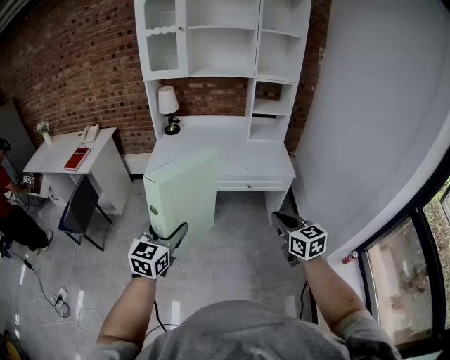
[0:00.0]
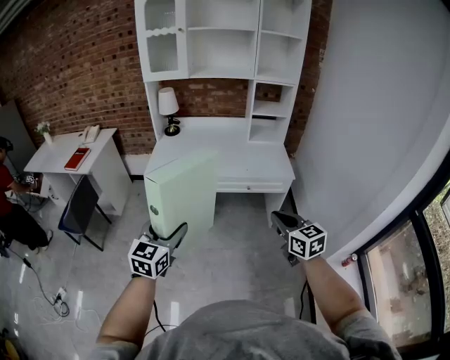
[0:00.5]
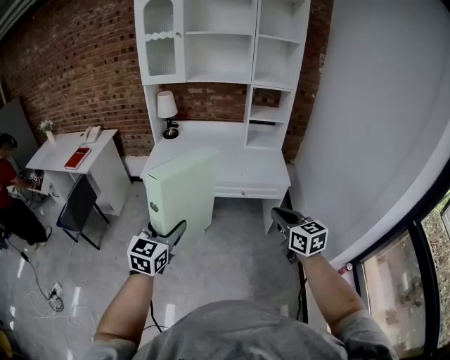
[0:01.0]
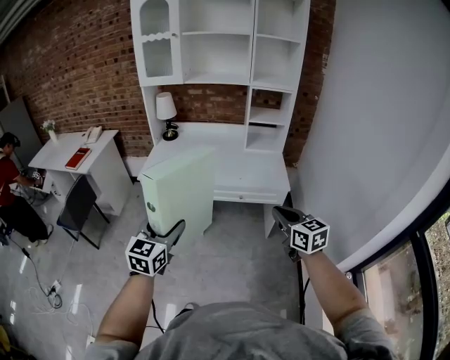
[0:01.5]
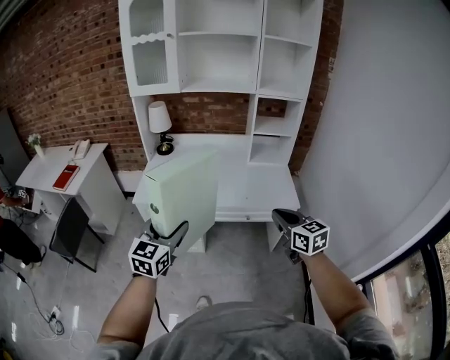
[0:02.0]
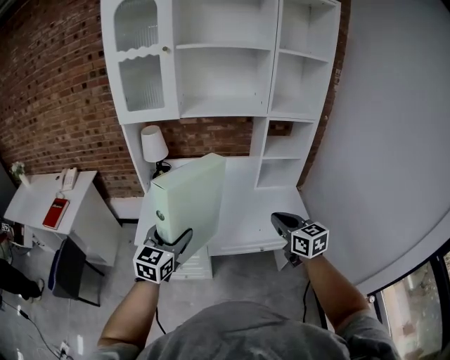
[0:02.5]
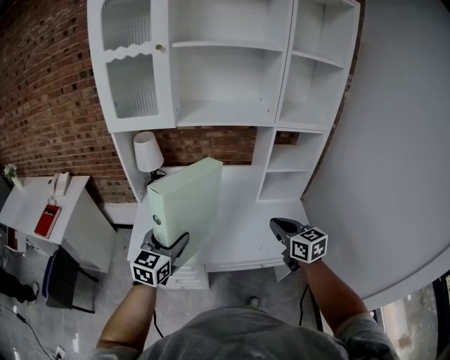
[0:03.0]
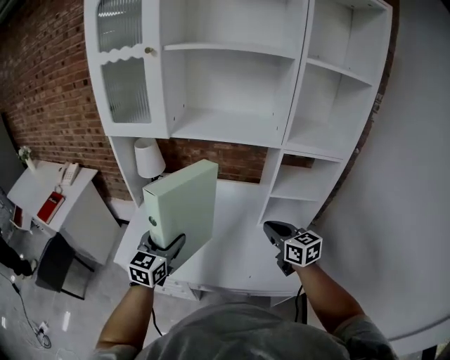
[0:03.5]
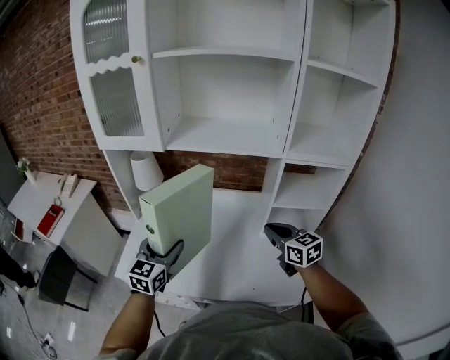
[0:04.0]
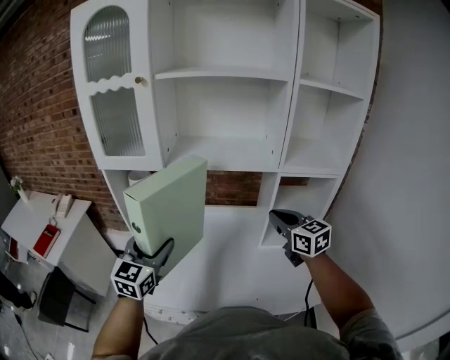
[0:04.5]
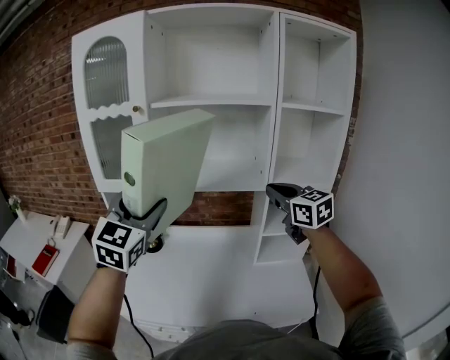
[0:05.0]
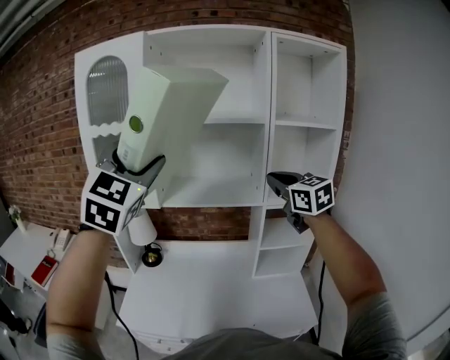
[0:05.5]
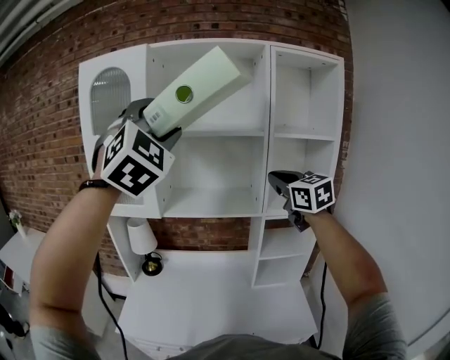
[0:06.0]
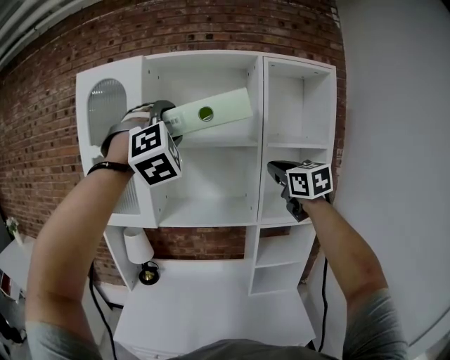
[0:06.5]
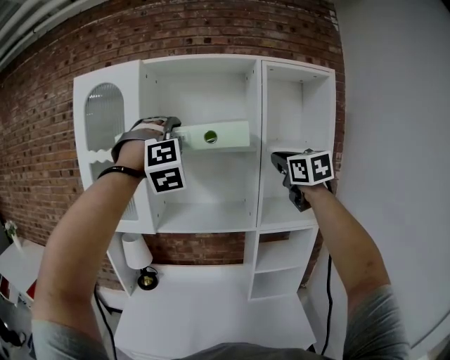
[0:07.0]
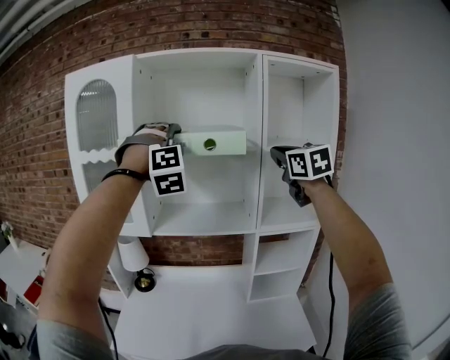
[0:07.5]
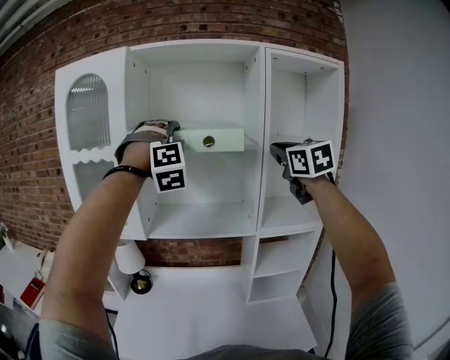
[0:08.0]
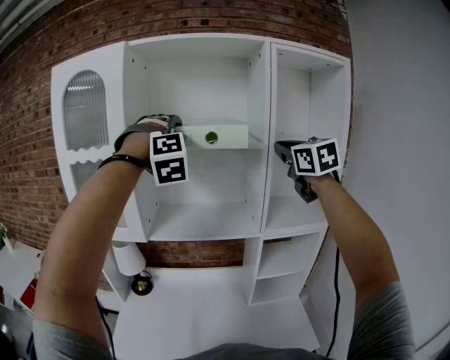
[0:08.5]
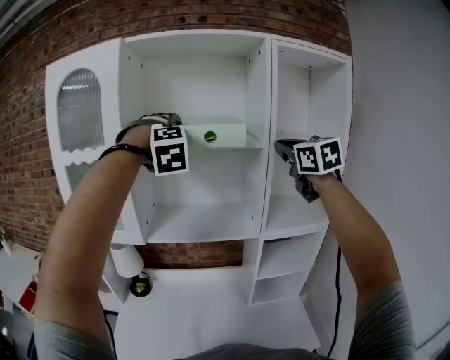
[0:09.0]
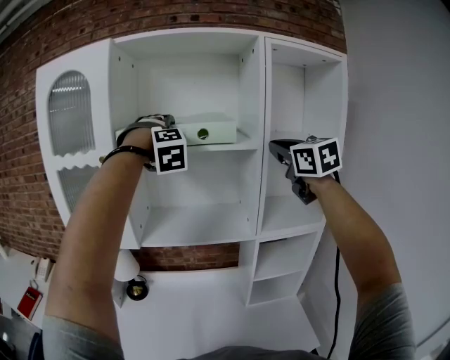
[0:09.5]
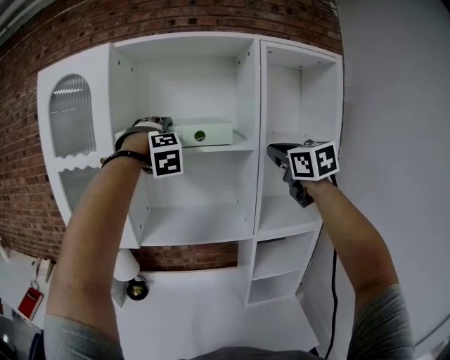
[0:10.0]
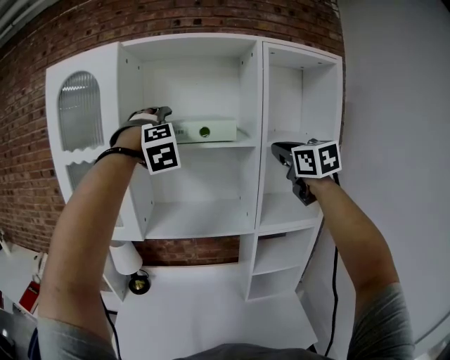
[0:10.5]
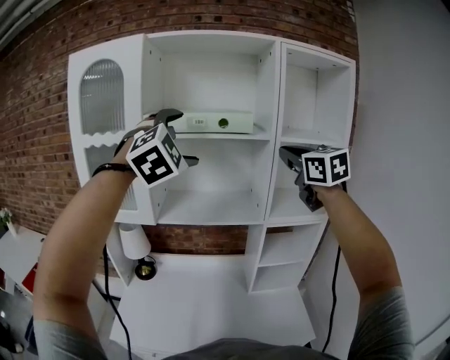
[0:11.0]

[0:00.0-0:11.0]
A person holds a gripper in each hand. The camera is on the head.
0:00.0 to 0:02.0: The grippers both shift forward by approximately 20 cm.
0:02.0 to 0:03.5: The grippers both shift forward by some 40 cm.
0:03.5 to 0:05.5: The two grippers go roughly 40 cm upward. The right gripper rotates roughly 30 degrees. Meanwhile the left gripper rolls clockwise, seen from behind, by roughly 40 degrees.
0:05.5 to 0:07.5: The right gripper travels upward and forward by roughly 15 cm. Meanwhile the left gripper goes roughly 20 cm forward and to the right, and rolls clockwise, seen from behind, by approximately 60 degrees.
0:07.5 to 0:09.0: The right gripper moves forward, some 5 cm; the left gripper goes some 10 cm forward.
0:09.0 to 0:11.0: The left gripper is displaced backward by about 10 cm, and turns by about 30 degrees, while the right gripper goes approximately 5 cm backward.

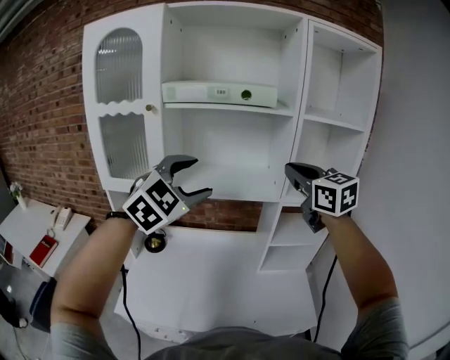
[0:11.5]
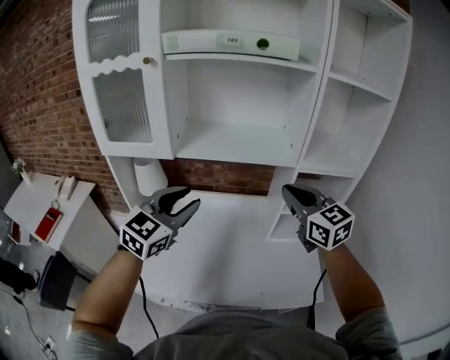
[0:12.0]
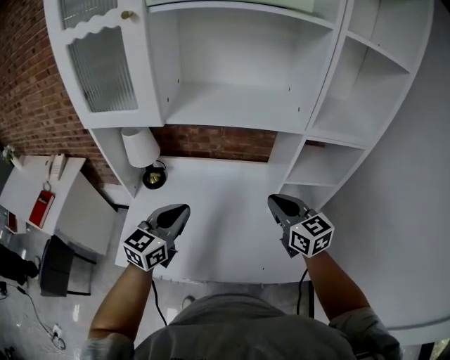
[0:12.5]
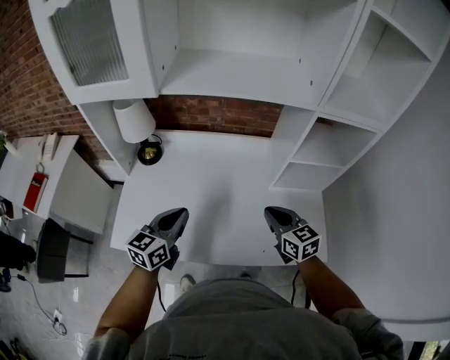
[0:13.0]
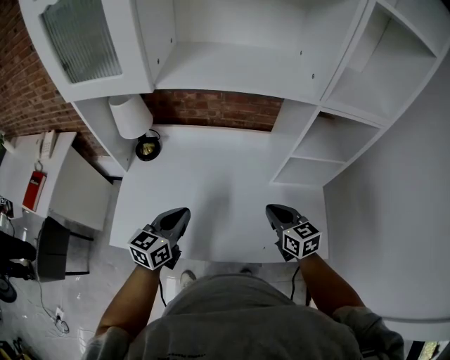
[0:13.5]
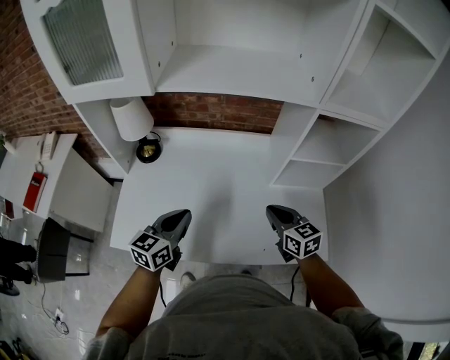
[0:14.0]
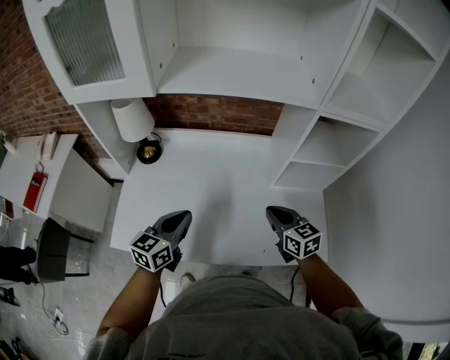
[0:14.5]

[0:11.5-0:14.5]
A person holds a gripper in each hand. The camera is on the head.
0:11.5 to 0:13.0: Both grippers move downward, roughly 40 cm. The right gripper changes its angle by roughly 30 degrees. The left gripper rolls counterclockwise, seen from behind, by about 70 degrees, and closes its fingers.
0:13.0 to 0:14.5: There are only small adjustments of the grippers.

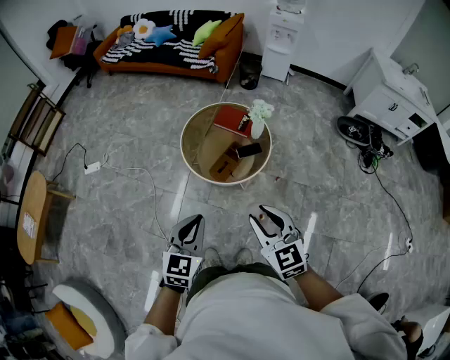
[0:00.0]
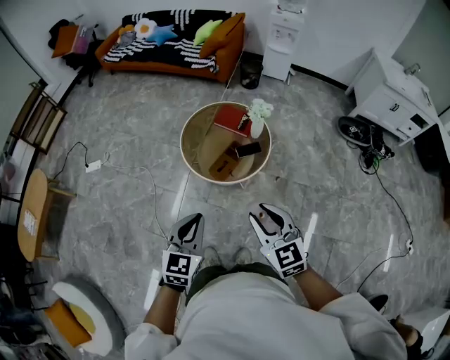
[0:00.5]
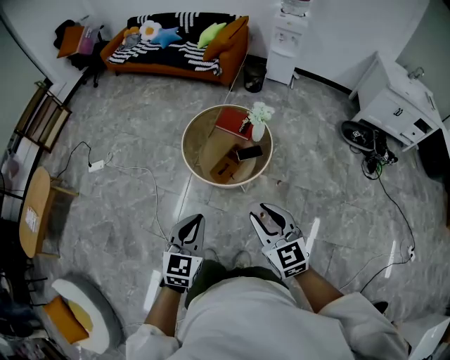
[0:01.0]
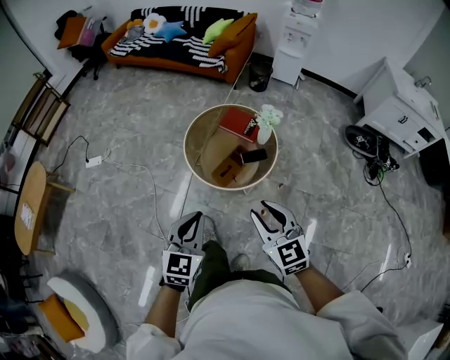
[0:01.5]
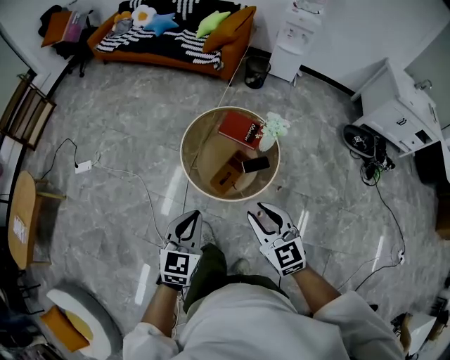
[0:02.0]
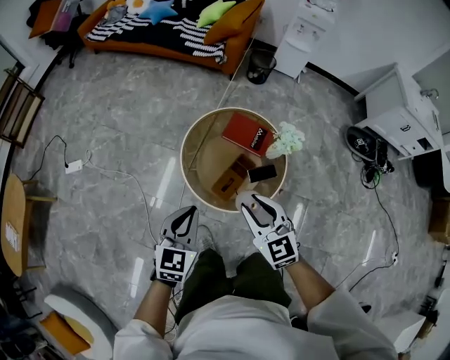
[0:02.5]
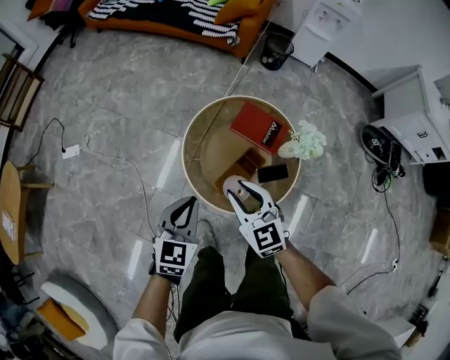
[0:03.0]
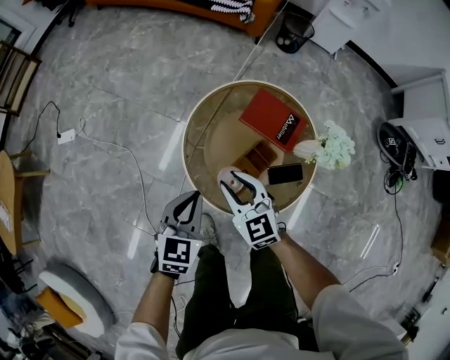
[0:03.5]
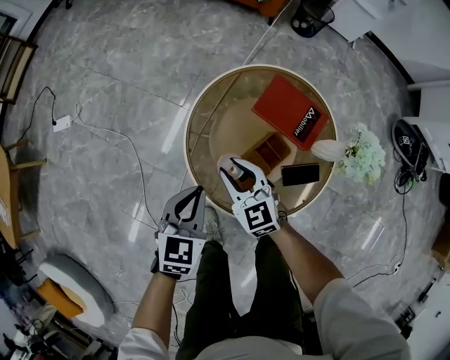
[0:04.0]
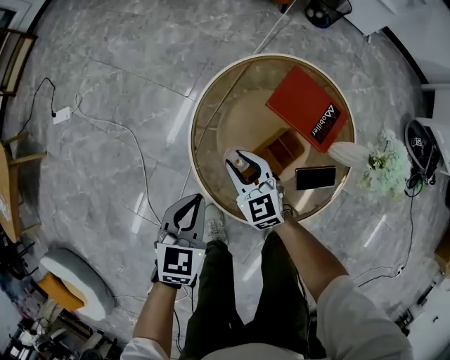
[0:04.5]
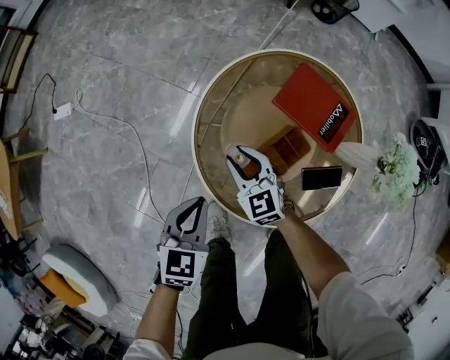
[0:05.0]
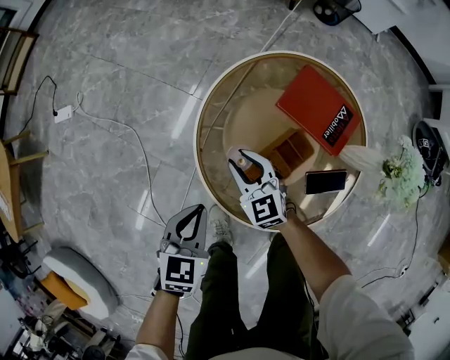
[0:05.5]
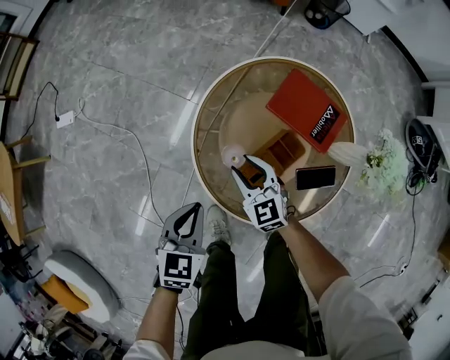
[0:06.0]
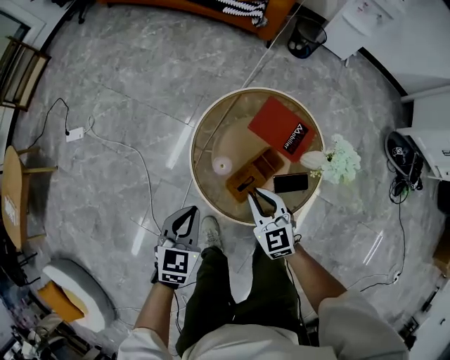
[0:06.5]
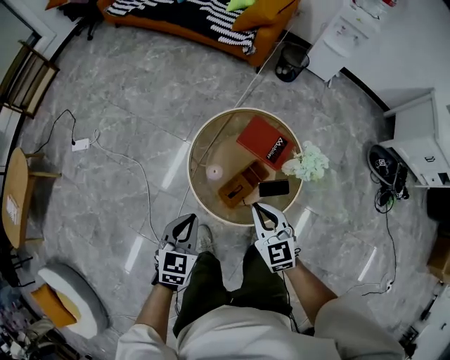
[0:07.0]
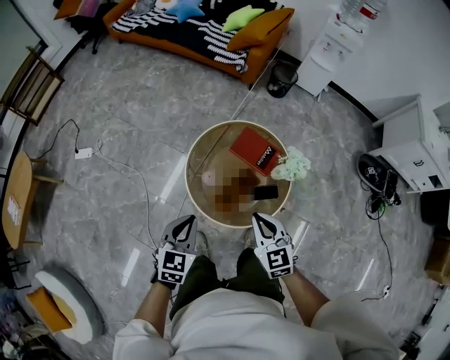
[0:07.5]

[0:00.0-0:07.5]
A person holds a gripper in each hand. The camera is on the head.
0:00.0 to 0:02.0: The two grippers go about 15 cm forward.
0:02.0 to 0:04.0: The two grippers go approximately 50 cm downward and forward.
0:04.0 to 0:05.5: The two grippers go some 10 cm downward.
0:05.5 to 0:07.5: The right gripper is displaced upward and backward by roughly 40 cm, and closes its fingers. Meanwhile the left gripper heads upward, covering some 30 cm.

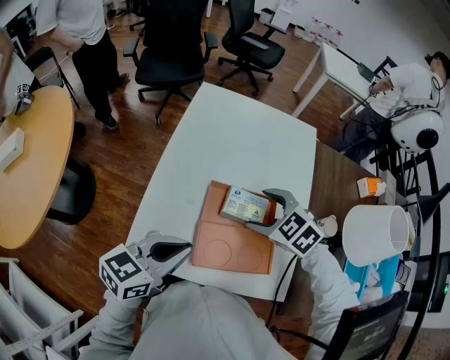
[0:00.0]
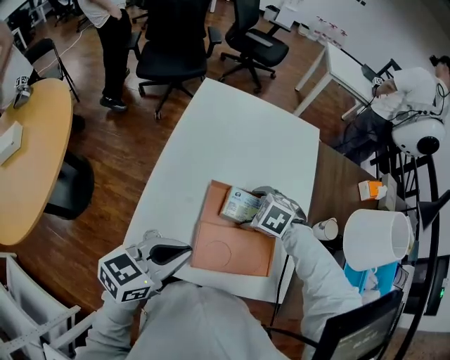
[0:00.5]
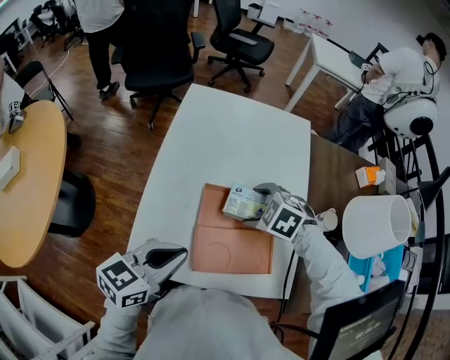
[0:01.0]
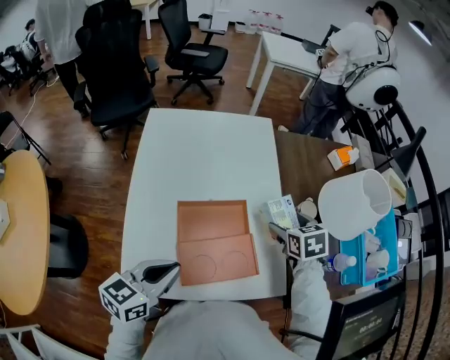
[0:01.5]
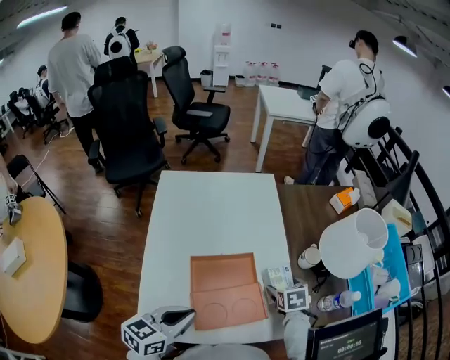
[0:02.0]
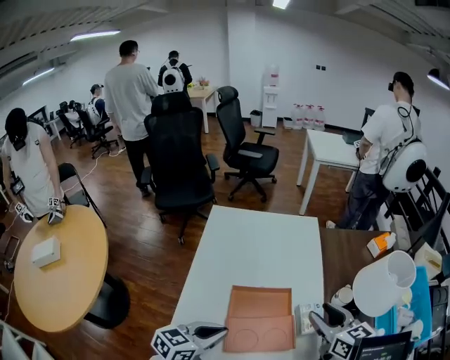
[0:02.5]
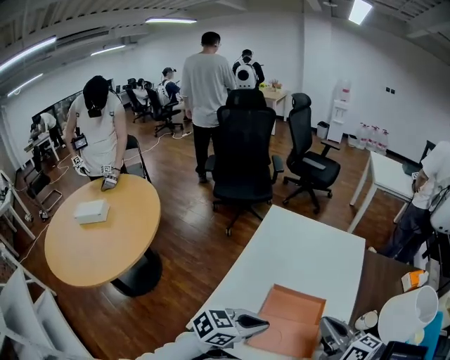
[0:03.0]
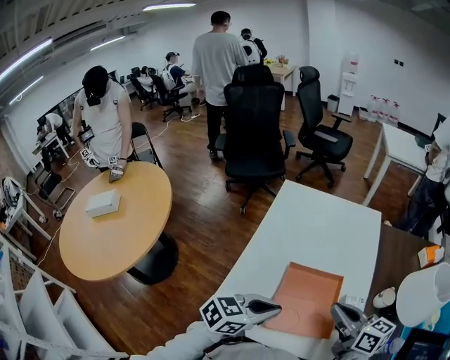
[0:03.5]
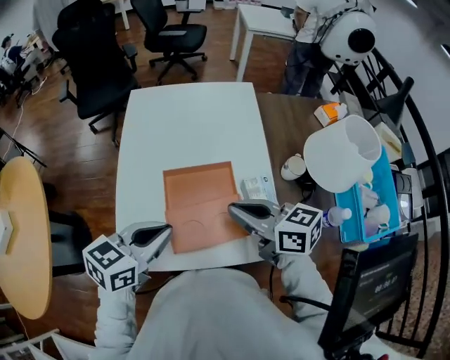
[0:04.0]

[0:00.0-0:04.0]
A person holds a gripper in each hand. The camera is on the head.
0:00.0 to 0:02.0: The right gripper goes up and down, about 10 cm each way, reversing 2 times, and rolls clockwise, seen from behind, by some 60 degrees.
0:02.0 to 0:04.0: The right gripper heads upward, covering approximately 20 cm, angles its fingers upward, by roughly 40 degrees, and closes up.
